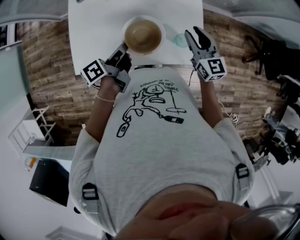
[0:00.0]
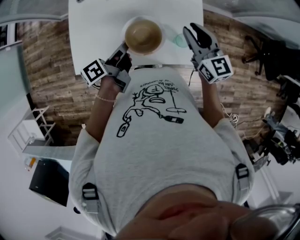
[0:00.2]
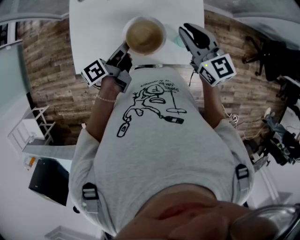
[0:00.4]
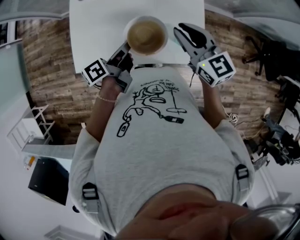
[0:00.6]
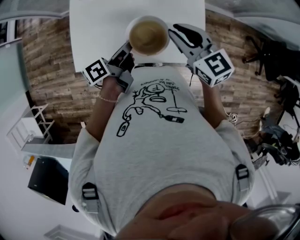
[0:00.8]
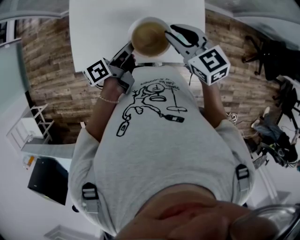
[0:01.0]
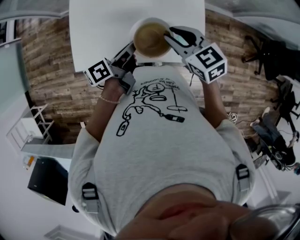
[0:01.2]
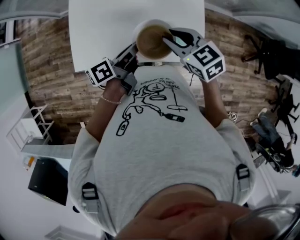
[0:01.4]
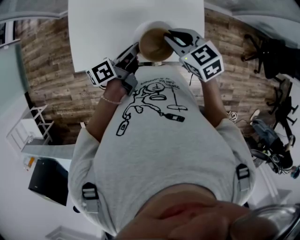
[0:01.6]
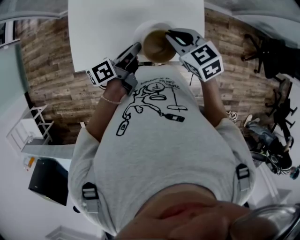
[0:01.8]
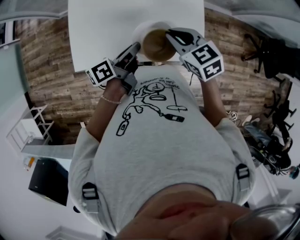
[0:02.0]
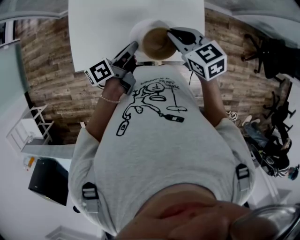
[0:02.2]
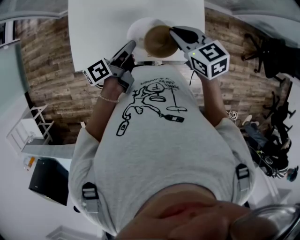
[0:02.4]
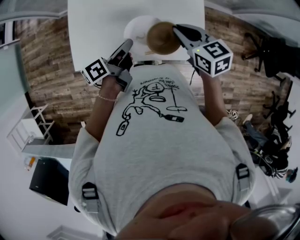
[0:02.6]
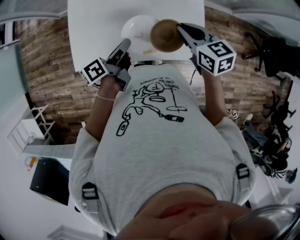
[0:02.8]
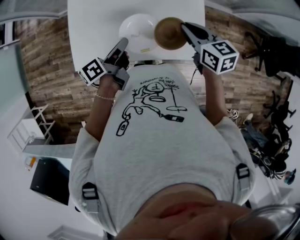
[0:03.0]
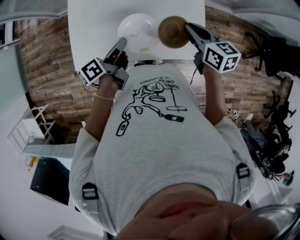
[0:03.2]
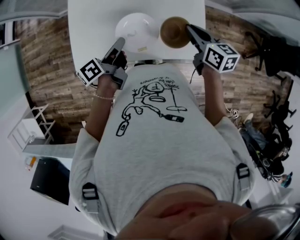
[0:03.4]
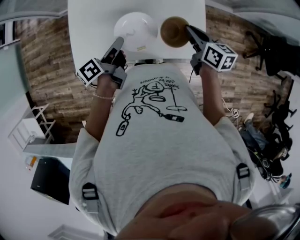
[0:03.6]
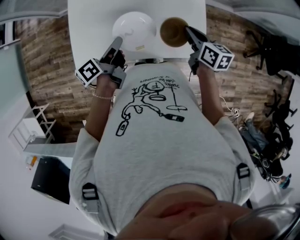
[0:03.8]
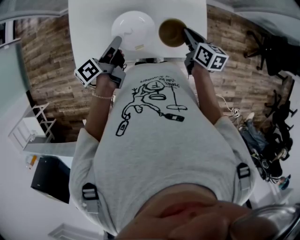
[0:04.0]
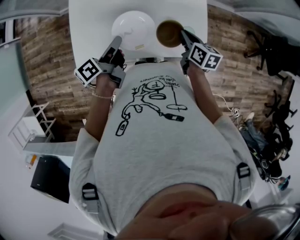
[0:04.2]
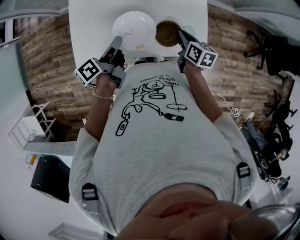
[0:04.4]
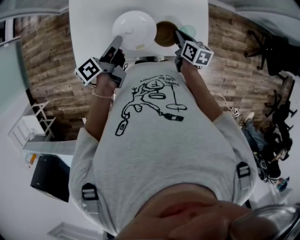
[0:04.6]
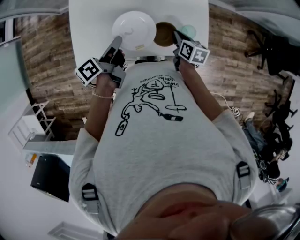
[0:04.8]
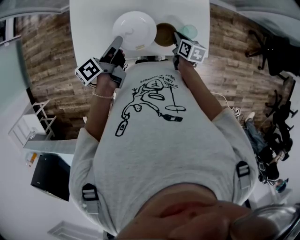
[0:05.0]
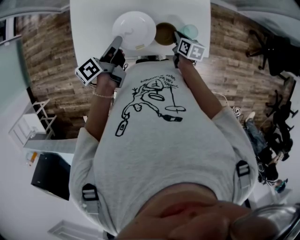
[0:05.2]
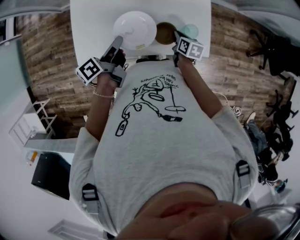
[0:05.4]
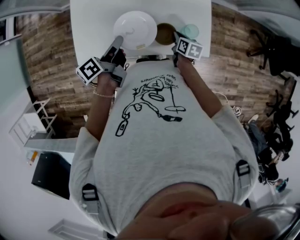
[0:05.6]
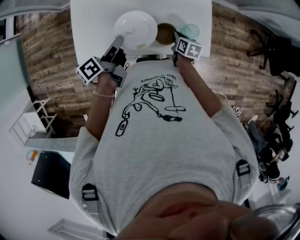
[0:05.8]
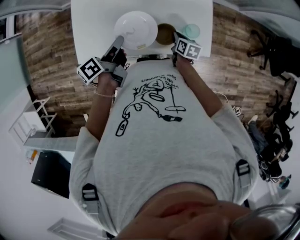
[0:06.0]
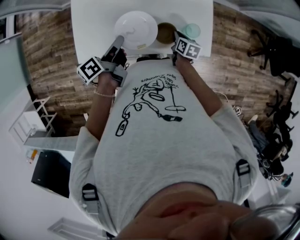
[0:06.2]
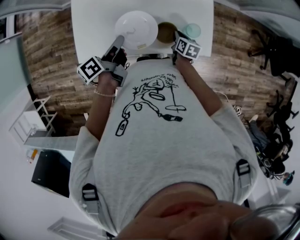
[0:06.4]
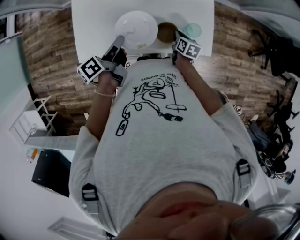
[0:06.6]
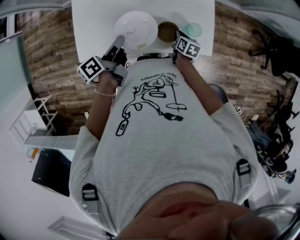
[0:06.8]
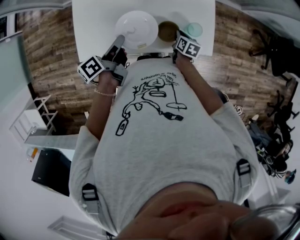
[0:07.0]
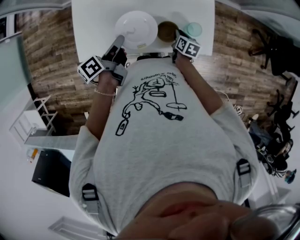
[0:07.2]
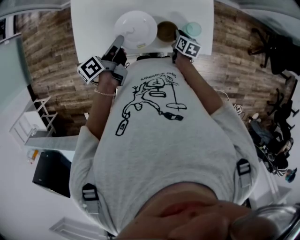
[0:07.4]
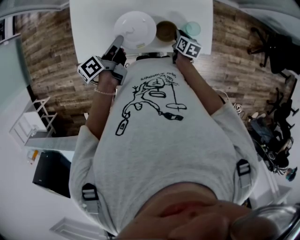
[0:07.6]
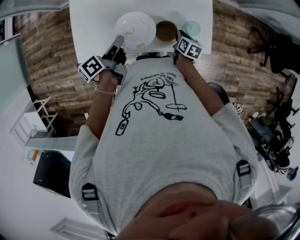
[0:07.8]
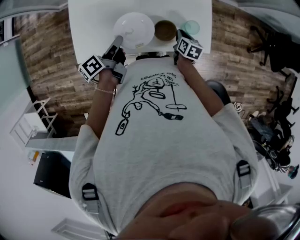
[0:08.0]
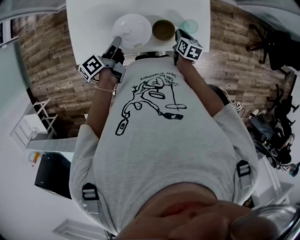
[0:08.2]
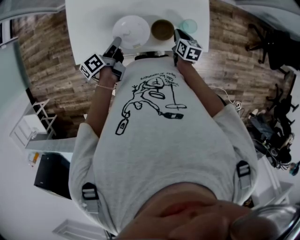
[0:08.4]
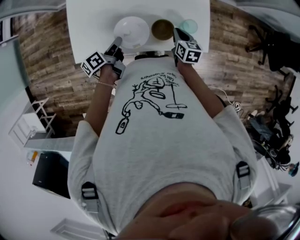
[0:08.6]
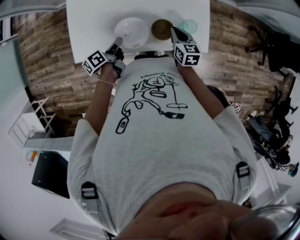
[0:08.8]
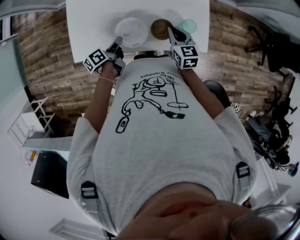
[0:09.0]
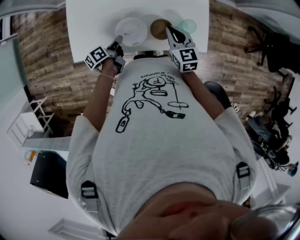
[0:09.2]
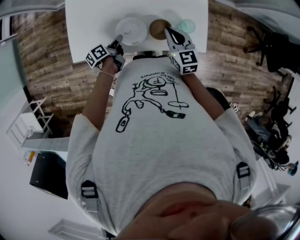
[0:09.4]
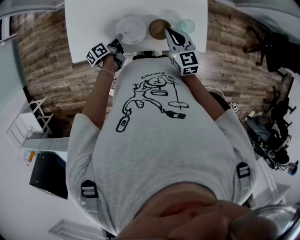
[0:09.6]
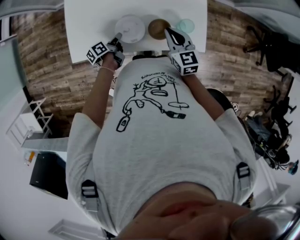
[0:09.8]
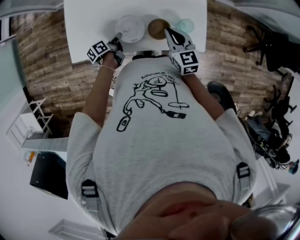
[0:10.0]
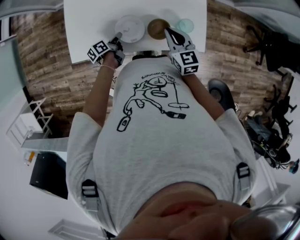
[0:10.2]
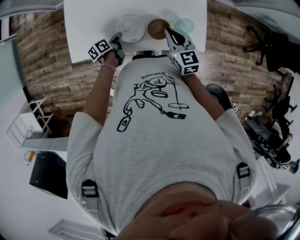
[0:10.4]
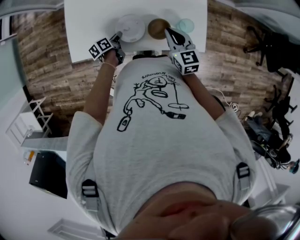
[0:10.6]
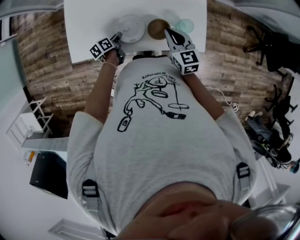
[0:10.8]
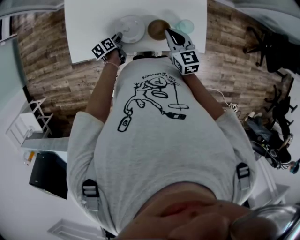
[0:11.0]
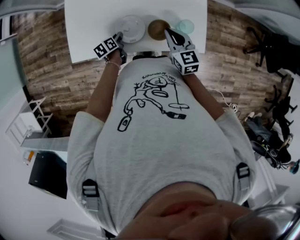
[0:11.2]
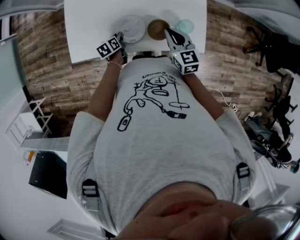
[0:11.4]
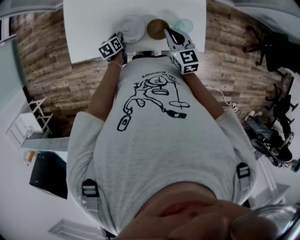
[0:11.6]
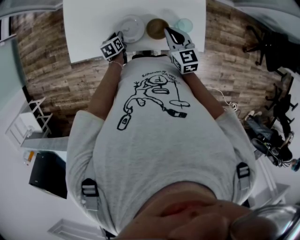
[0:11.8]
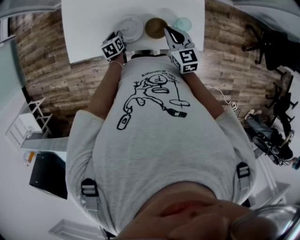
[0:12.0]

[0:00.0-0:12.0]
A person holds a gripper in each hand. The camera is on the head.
0:00.0 to 0:01.6: The right gripper travels upward and back again, some 10 cm each way, and rotates about 30 degrees.
0:01.6 to 0:03.0: The right gripper shifts by approximately 10 cm, and swivels roughly 20 degrees.
0:03.0 to 0:04.4: The right gripper shifts approximately 15 cm downward, and changes its angle by some 30 degrees.
0:04.4 to 0:06.0: The right gripper heads downward, covering some 15 cm.
0:07.6 to 0:09.0: The right gripper moves upward, some 10 cm, and turns by about 40 degrees.

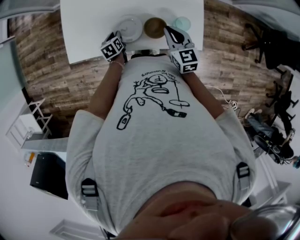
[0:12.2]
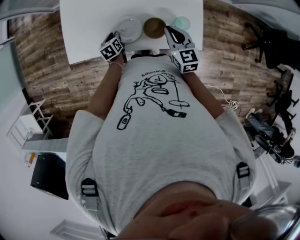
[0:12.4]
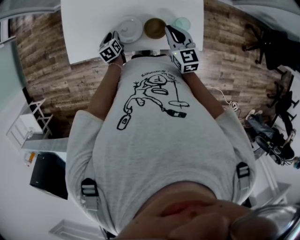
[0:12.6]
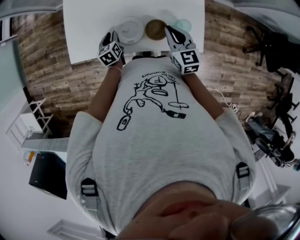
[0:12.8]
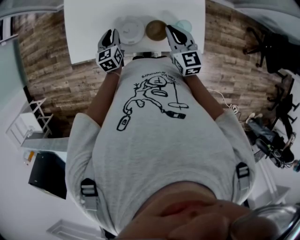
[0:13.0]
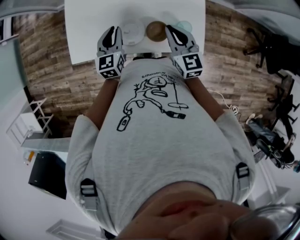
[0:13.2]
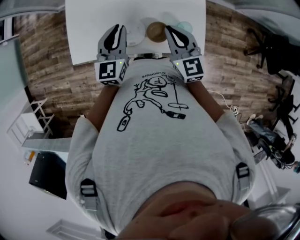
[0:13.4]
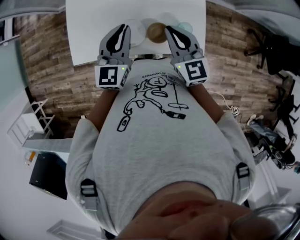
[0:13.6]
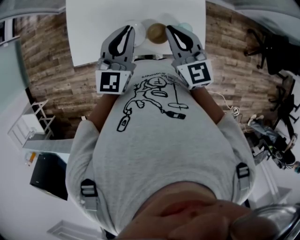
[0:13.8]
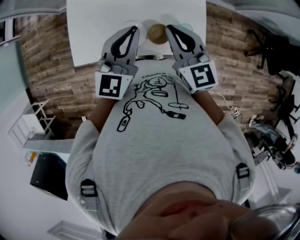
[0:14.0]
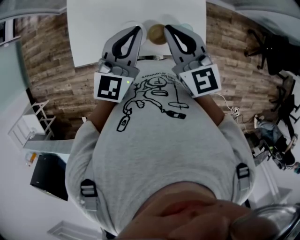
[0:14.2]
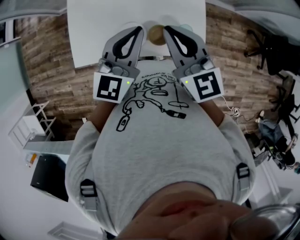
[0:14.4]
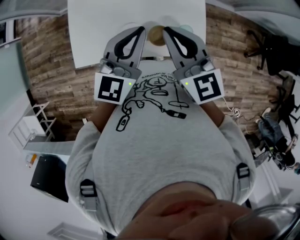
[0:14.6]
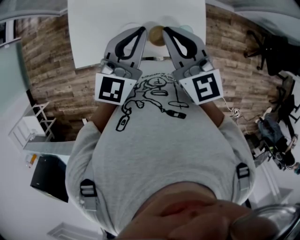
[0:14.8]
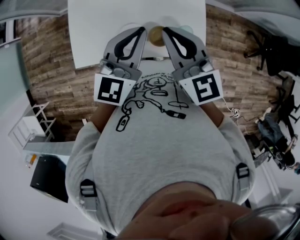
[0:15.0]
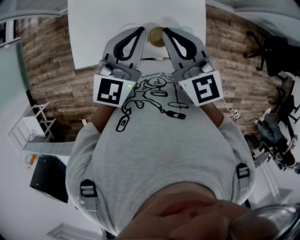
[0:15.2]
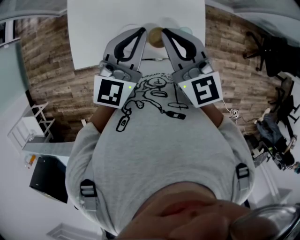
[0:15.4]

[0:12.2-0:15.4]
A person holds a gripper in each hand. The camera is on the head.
0:12.2 to 0:13.8: The right gripper goes roughly 15 cm upward.
0:13.8 to 0:15.4: The right gripper goes about 10 cm upward.

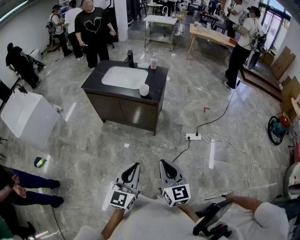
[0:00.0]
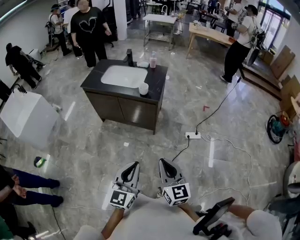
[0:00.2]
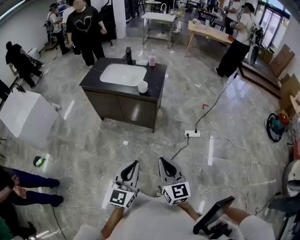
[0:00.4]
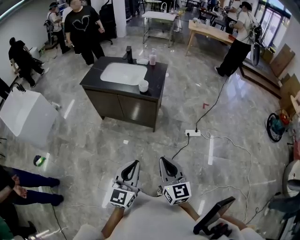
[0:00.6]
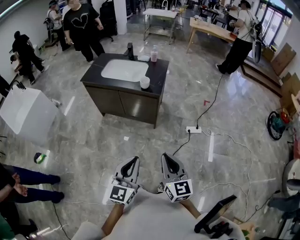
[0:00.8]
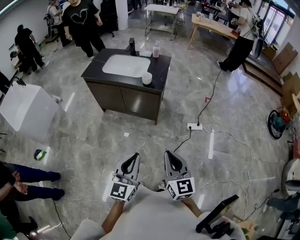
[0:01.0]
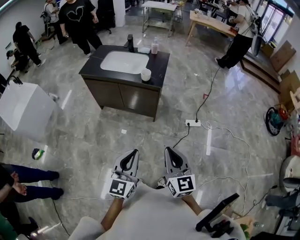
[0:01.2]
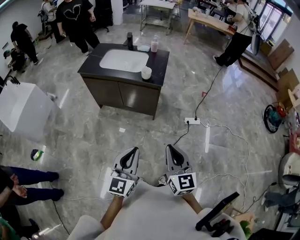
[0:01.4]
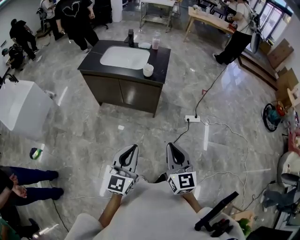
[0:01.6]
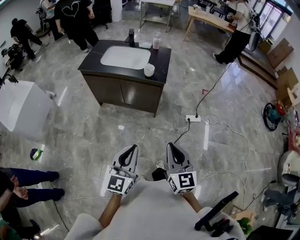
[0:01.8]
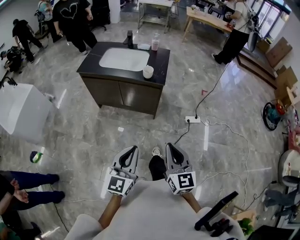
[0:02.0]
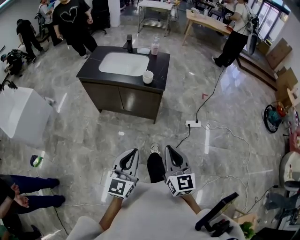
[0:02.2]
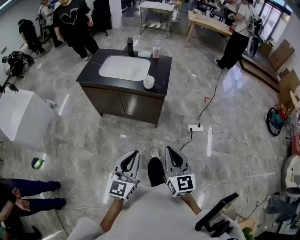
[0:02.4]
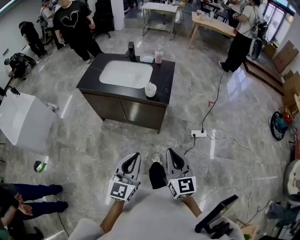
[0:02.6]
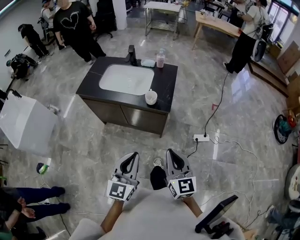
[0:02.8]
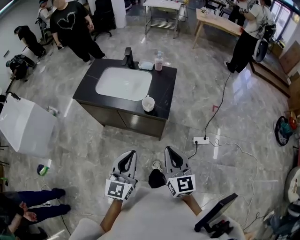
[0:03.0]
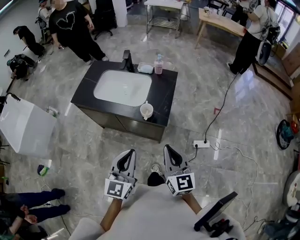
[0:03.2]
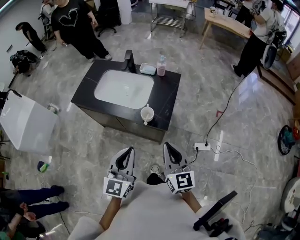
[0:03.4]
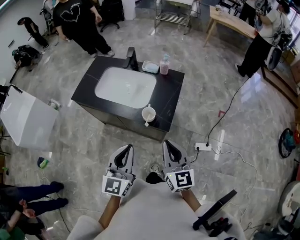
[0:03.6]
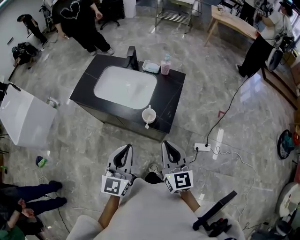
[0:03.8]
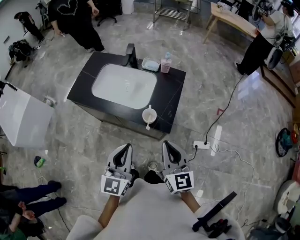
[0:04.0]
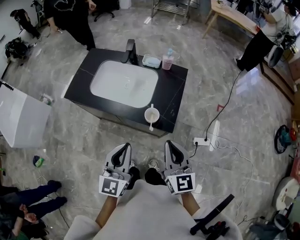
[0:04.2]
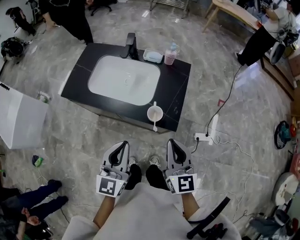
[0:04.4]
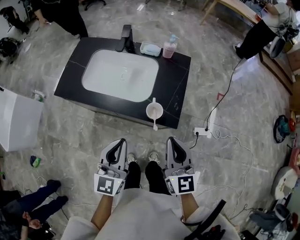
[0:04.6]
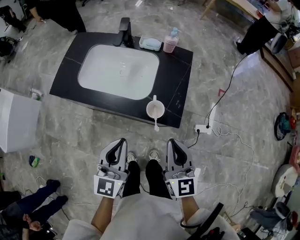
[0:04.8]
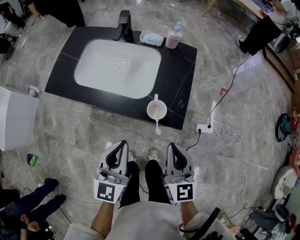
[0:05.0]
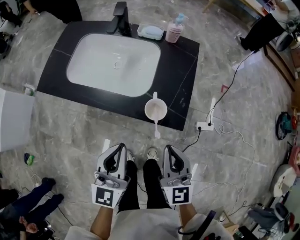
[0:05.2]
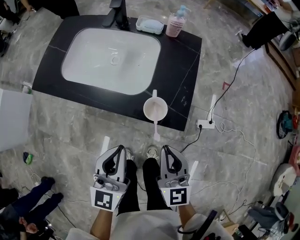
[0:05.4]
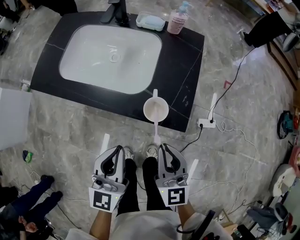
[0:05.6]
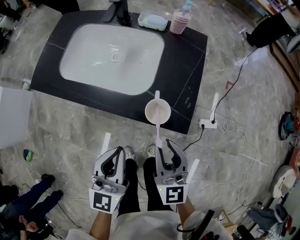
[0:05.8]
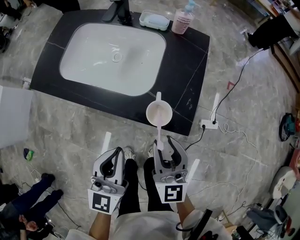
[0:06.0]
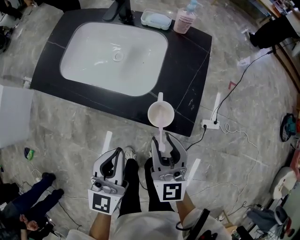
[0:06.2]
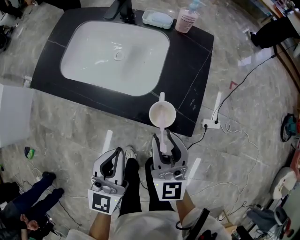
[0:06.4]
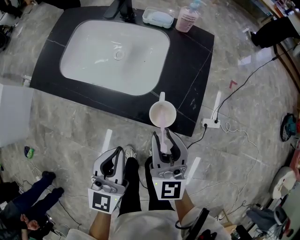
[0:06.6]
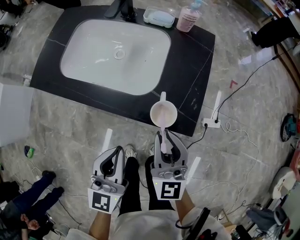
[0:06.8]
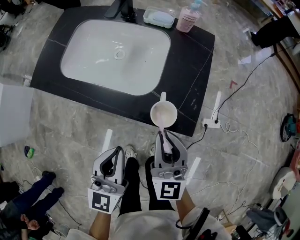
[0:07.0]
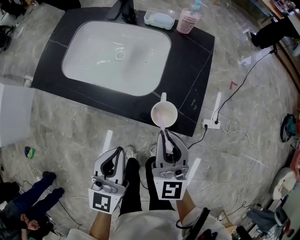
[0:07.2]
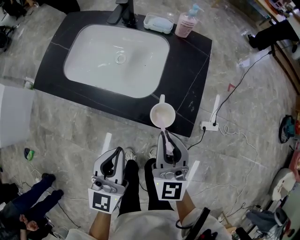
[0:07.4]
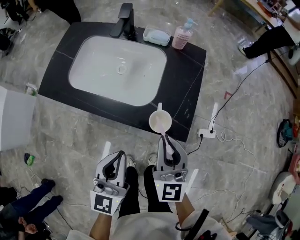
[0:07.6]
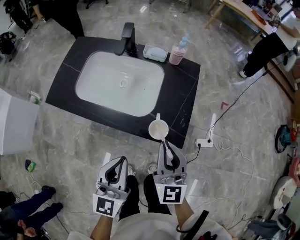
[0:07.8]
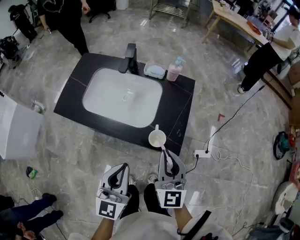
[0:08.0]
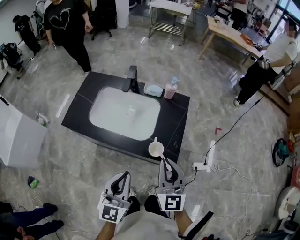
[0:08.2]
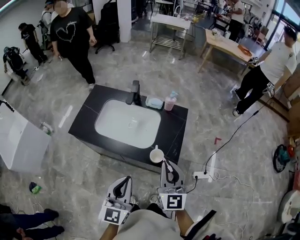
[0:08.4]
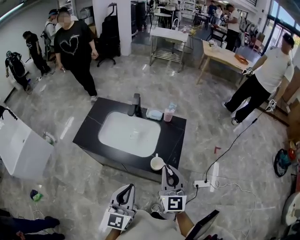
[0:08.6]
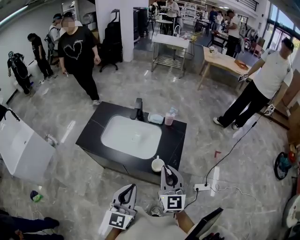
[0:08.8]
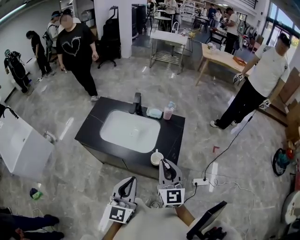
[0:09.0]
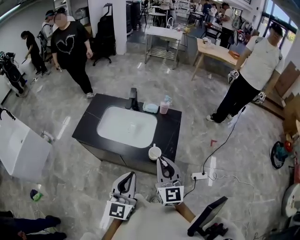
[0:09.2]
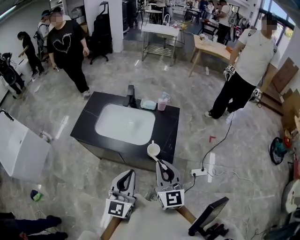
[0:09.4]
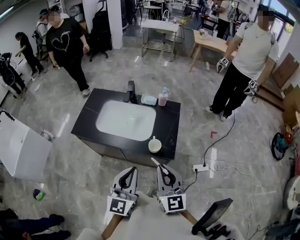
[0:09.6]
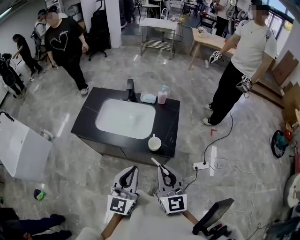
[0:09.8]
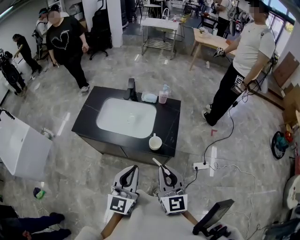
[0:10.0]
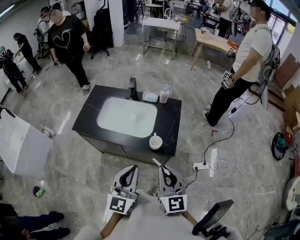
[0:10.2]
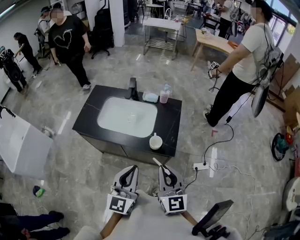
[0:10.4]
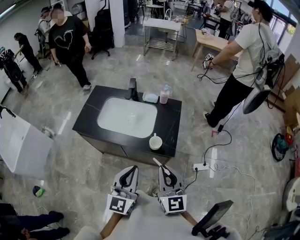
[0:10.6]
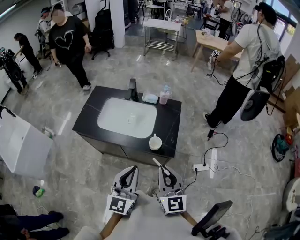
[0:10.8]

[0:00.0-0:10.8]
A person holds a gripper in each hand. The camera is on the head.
0:00.0 to 0:01.6: The left gripper travels to the left by roughly 5 cm.
0:01.6 to 0:03.0: The grippers both shift forward by roughly 25 cm.
0:03.0 to 0:04.6: The two grippers go approximately 15 cm forward.
0:04.6 to 0:06.2: Both grippers move downward, approximately 10 cm. The right gripper opens.
0:06.2 to 0:07.8: Both grippers move upward, approximately 5 cm. The right gripper closes up.
0:07.8 to 0:09.2: Both grippers move upward, about 10 cm.
0:09.2 to 0:10.8: The right gripper heads backward, covering approximately 5 cm.
